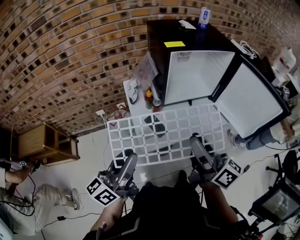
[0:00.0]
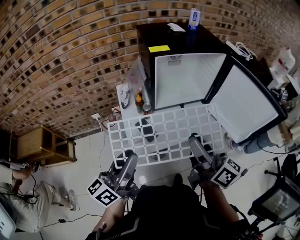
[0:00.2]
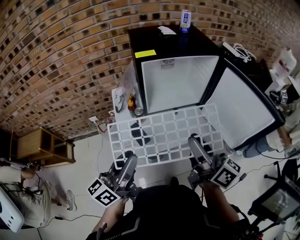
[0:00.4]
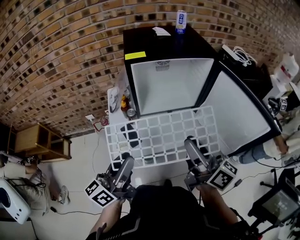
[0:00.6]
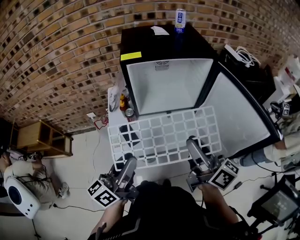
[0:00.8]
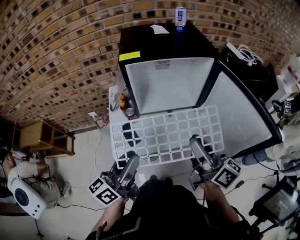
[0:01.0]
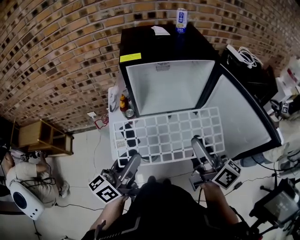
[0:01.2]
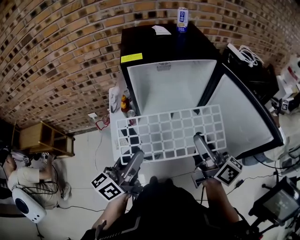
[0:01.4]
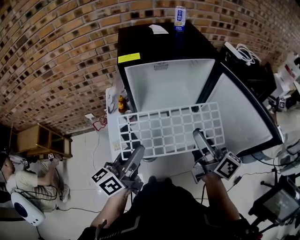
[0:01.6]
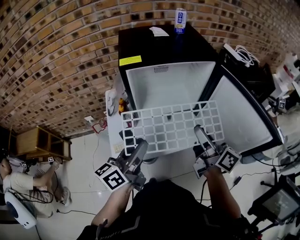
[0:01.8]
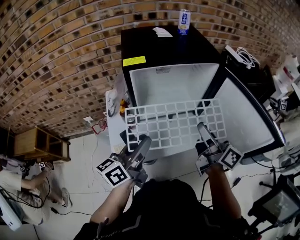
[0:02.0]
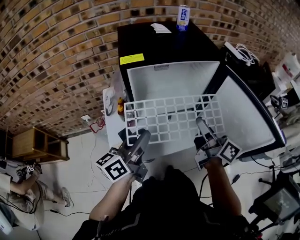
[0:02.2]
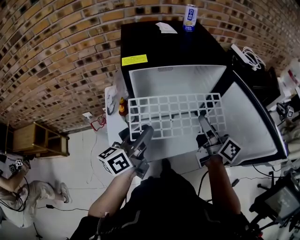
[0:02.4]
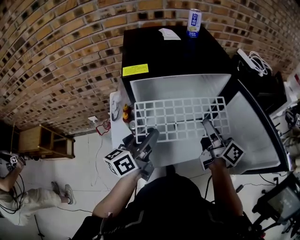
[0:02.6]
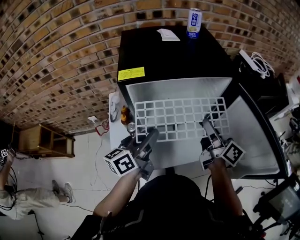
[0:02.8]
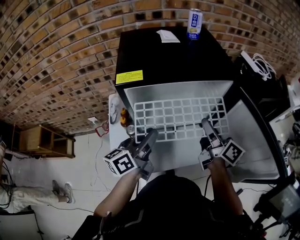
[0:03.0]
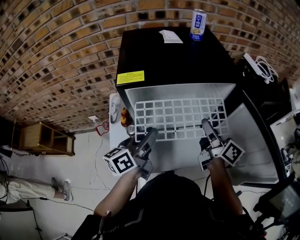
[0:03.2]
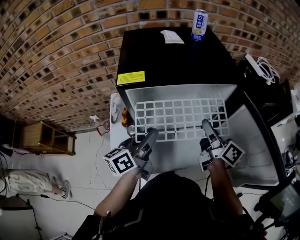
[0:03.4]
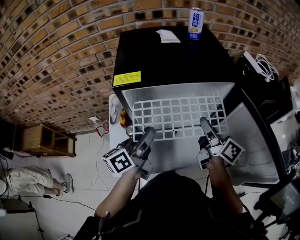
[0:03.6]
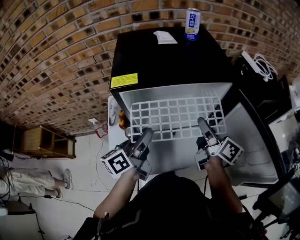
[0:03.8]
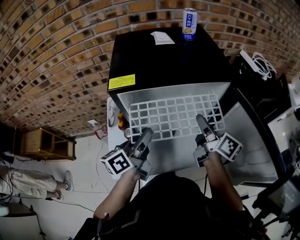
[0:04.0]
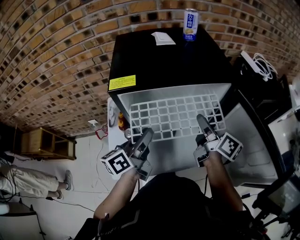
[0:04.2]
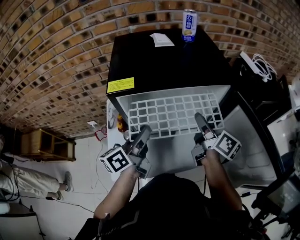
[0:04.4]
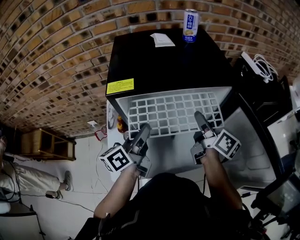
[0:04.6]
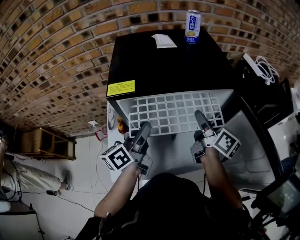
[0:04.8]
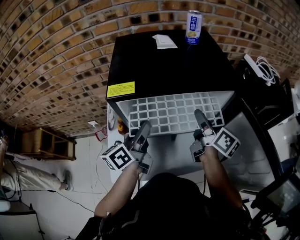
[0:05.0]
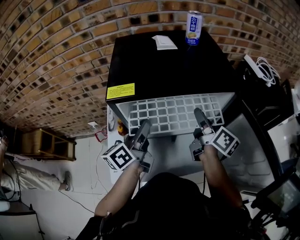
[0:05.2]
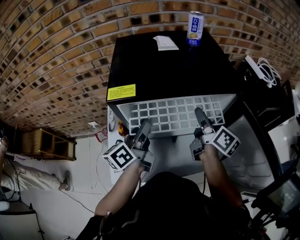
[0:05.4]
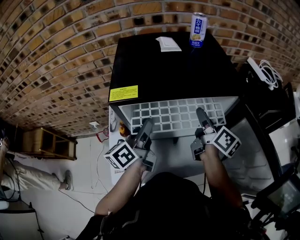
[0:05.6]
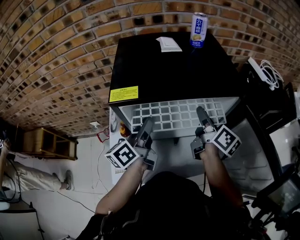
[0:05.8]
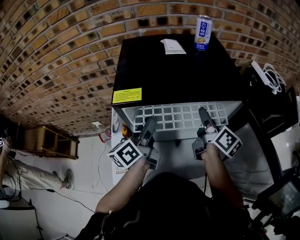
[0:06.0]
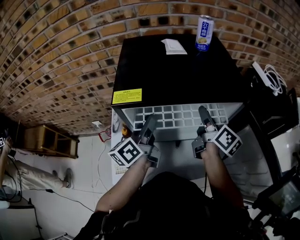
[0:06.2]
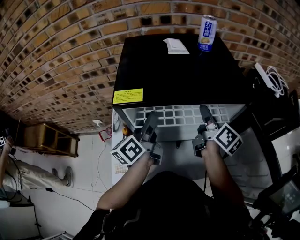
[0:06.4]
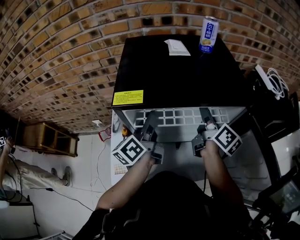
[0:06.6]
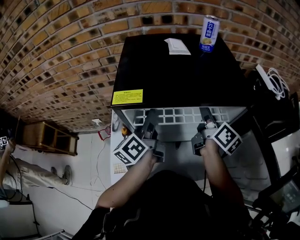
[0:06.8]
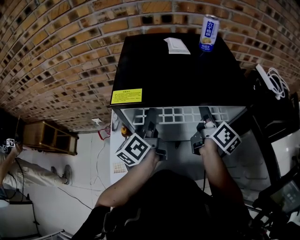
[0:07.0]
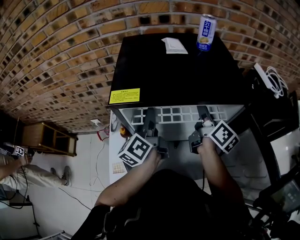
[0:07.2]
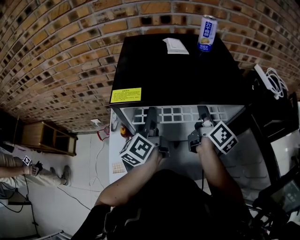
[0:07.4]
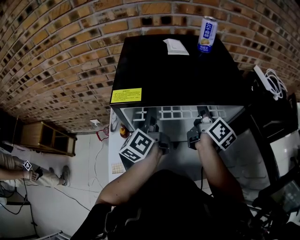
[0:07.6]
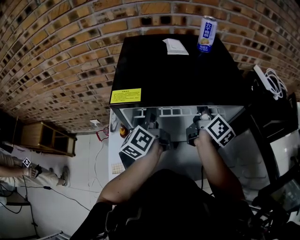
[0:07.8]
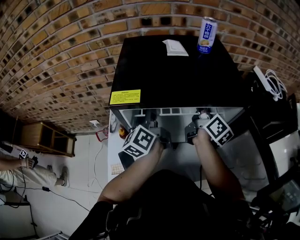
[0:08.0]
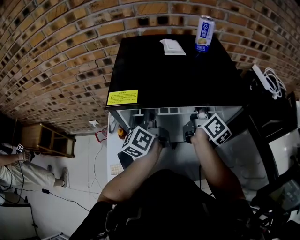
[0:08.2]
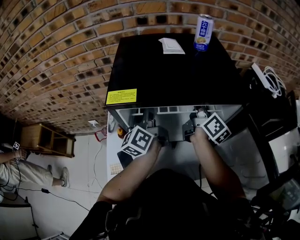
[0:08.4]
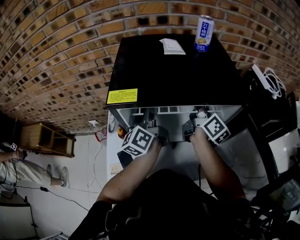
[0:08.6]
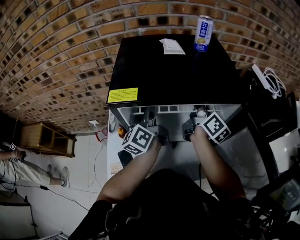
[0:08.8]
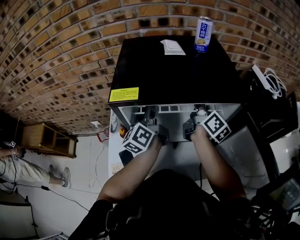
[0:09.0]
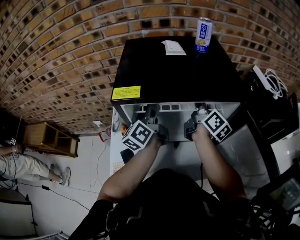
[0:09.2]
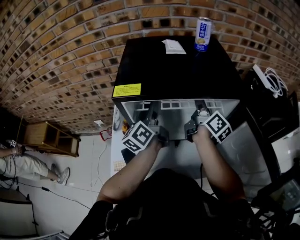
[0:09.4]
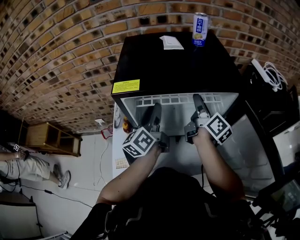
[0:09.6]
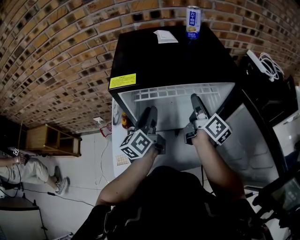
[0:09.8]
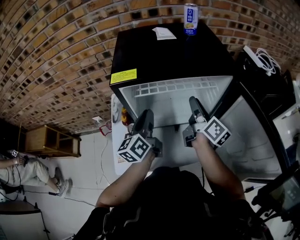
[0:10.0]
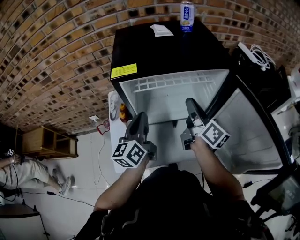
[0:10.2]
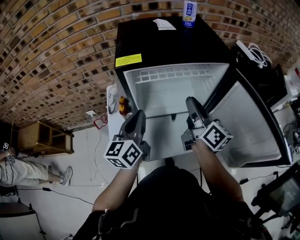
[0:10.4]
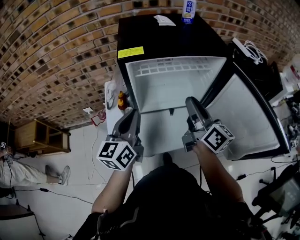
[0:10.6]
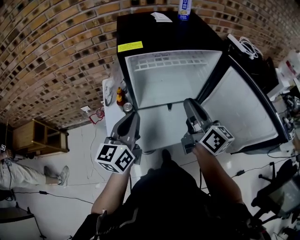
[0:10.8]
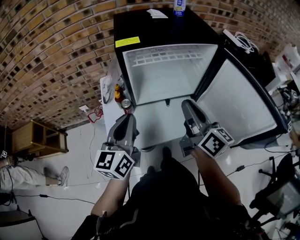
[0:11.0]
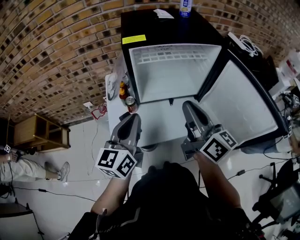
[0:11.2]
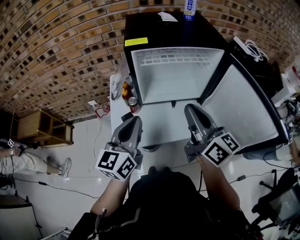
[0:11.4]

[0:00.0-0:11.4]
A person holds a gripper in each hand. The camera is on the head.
0:00.0 to 0:01.4: The right gripper travels to the right and forward by approximately 25 cm, while the left gripper travels to the right by some 20 cm.
0:01.4 to 0:02.8: Both grippers travel together forward, approximately 20 cm.
0:02.8 to 0:04.2: The right gripper travels forward by roughly 5 cm.
0:04.2 to 0:05.6: Both grippers move forward, roughly 5 cm.
0:05.6 to 0:07.2: The left gripper moves approximately 5 cm, and changes its angle by some 20 degrees; the right gripper travels forward by some 5 cm.
0:07.2 to 0:08.6: There are only small adjustments of the grippers.
0:08.6 to 0:10.0: The grippers both shift backward by about 10 cm. The left gripper closes its fingers.
0:10.0 to 0:11.4: The left gripper shifts roughly 20 cm backward, and turns by roughly 20 degrees. Meanwhile the right gripper shifts approximately 25 cm backward and upward, changes its angle by roughly 30 degrees, and closes.

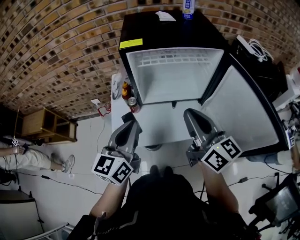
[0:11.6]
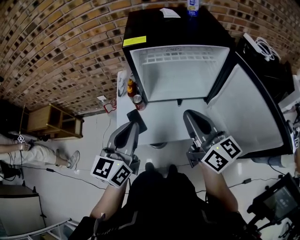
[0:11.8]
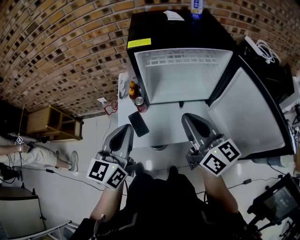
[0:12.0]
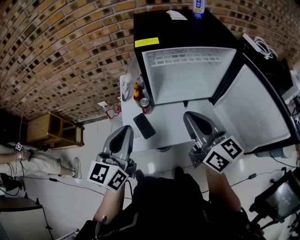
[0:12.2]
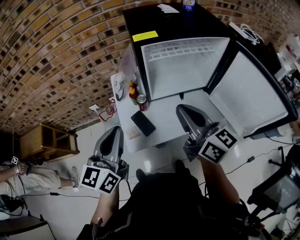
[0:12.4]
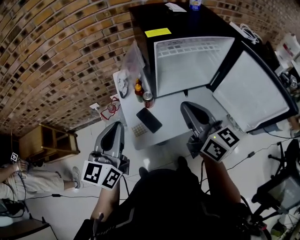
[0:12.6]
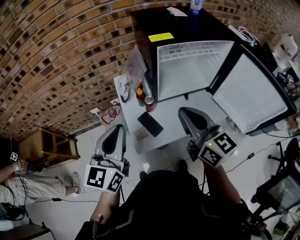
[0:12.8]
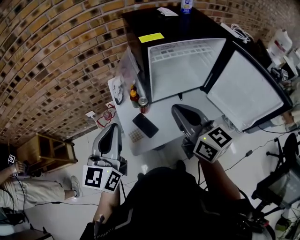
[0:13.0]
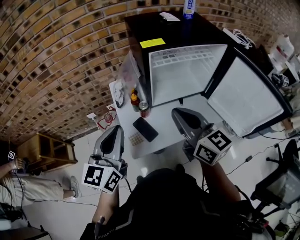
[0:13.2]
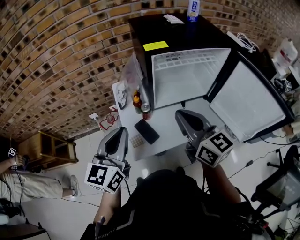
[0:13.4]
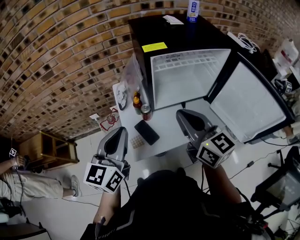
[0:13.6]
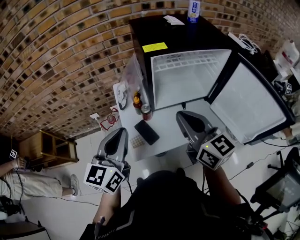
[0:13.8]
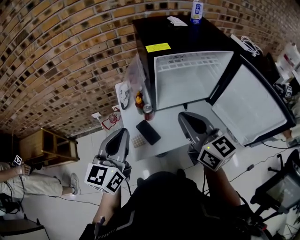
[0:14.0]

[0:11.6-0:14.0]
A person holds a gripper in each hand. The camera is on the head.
0:11.6 to 0:12.8: The grippers both shift to the left by some 20 cm.
0:12.8 to 0:14.0: The grippers stay close to where they were, moving slightly.

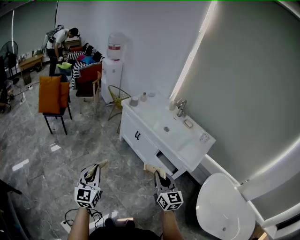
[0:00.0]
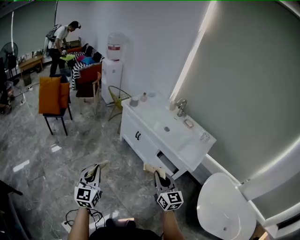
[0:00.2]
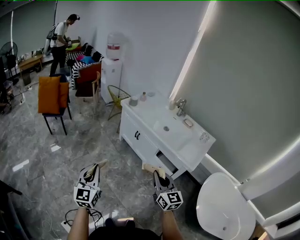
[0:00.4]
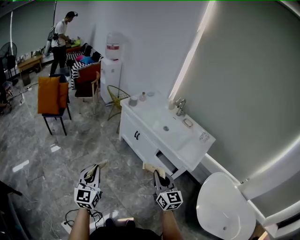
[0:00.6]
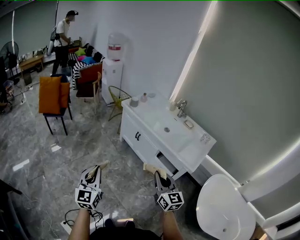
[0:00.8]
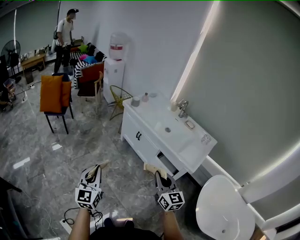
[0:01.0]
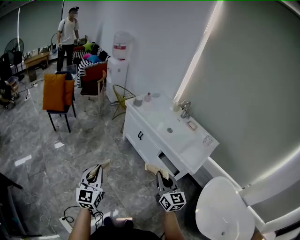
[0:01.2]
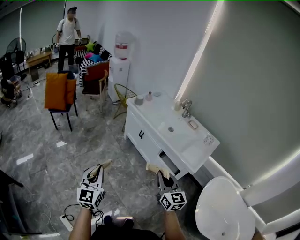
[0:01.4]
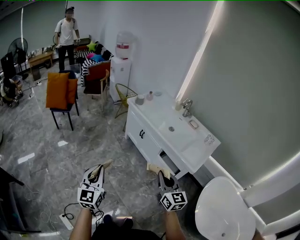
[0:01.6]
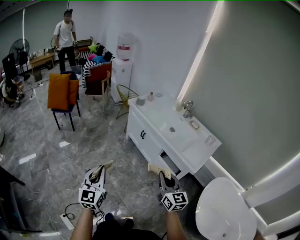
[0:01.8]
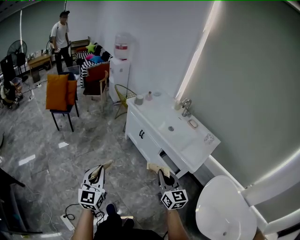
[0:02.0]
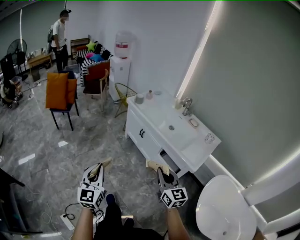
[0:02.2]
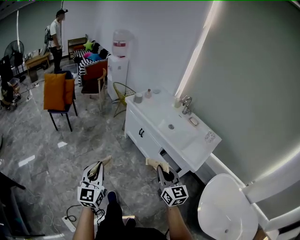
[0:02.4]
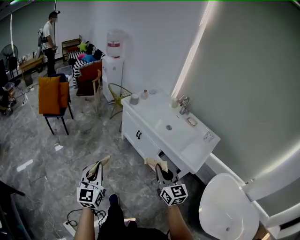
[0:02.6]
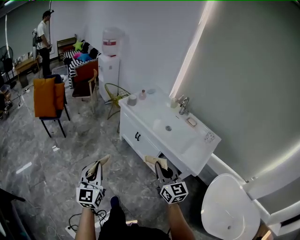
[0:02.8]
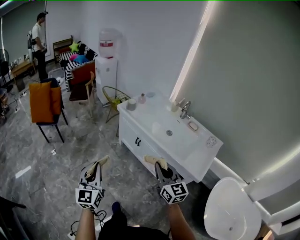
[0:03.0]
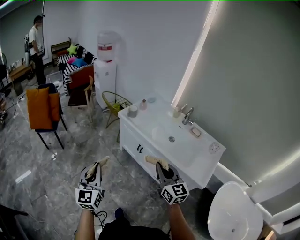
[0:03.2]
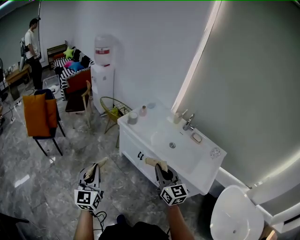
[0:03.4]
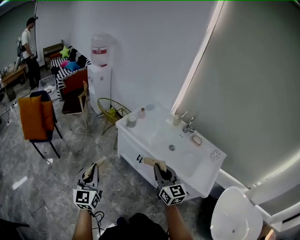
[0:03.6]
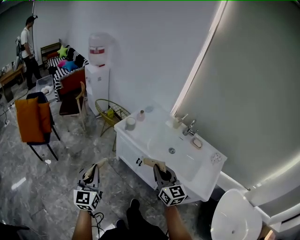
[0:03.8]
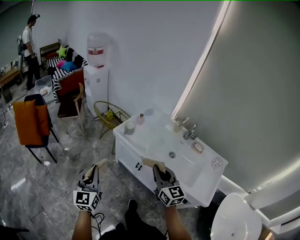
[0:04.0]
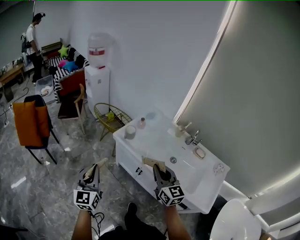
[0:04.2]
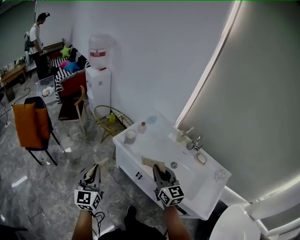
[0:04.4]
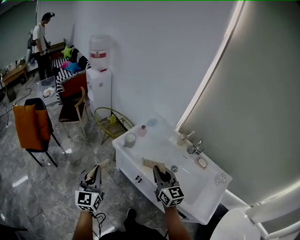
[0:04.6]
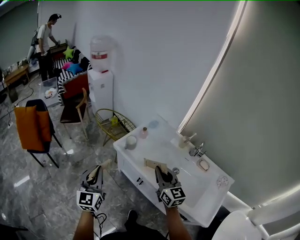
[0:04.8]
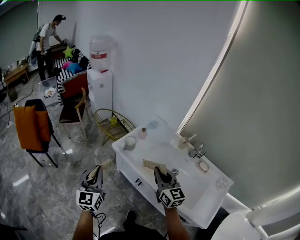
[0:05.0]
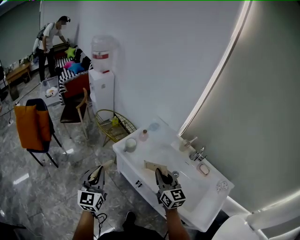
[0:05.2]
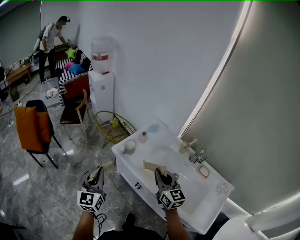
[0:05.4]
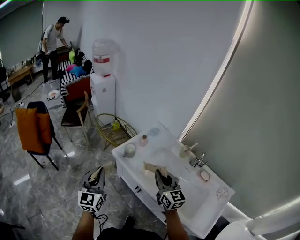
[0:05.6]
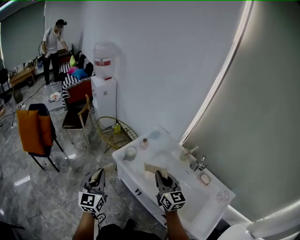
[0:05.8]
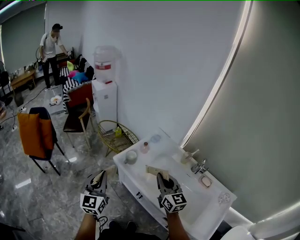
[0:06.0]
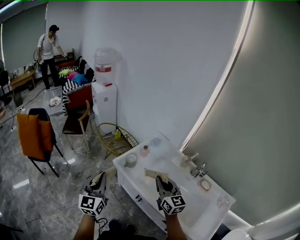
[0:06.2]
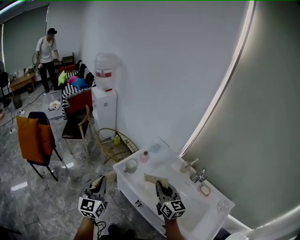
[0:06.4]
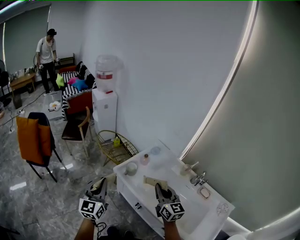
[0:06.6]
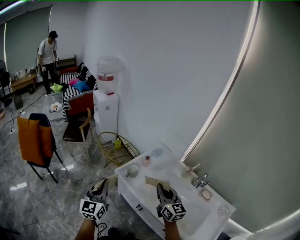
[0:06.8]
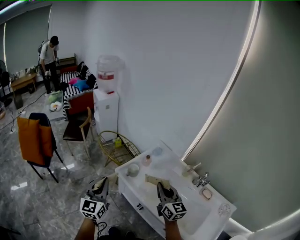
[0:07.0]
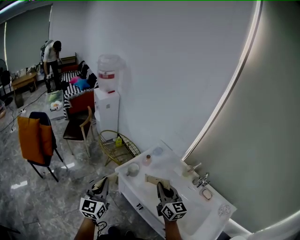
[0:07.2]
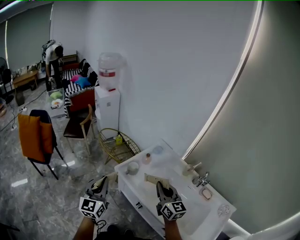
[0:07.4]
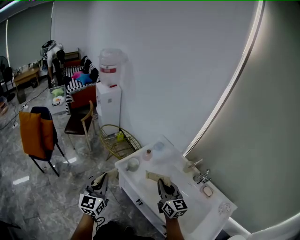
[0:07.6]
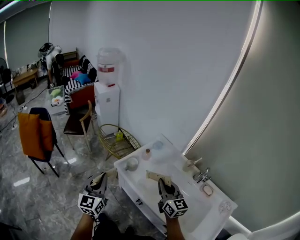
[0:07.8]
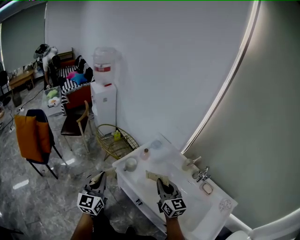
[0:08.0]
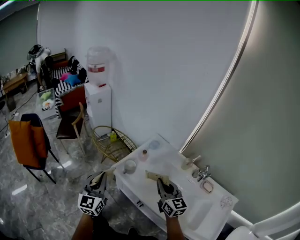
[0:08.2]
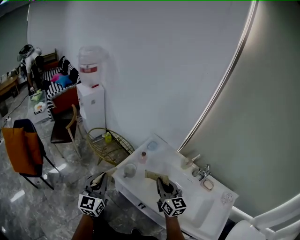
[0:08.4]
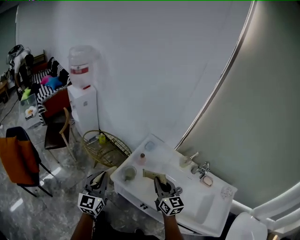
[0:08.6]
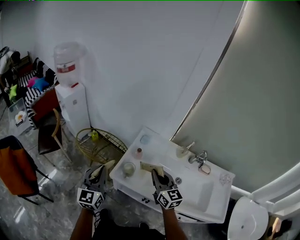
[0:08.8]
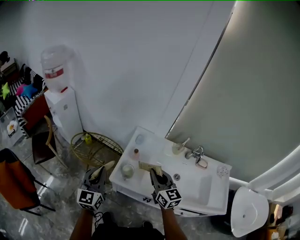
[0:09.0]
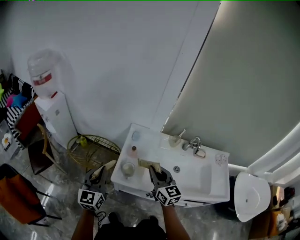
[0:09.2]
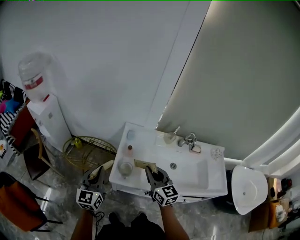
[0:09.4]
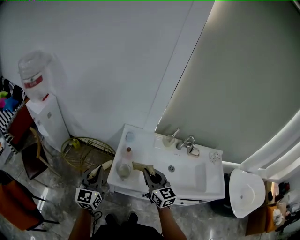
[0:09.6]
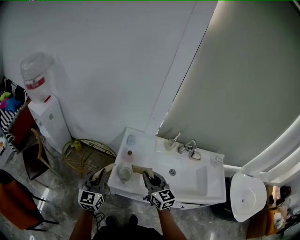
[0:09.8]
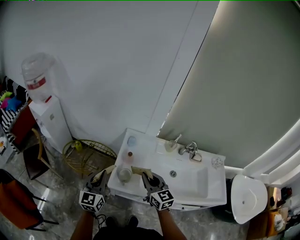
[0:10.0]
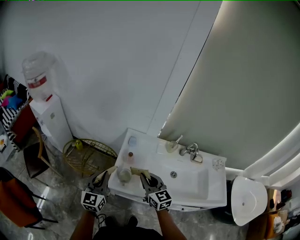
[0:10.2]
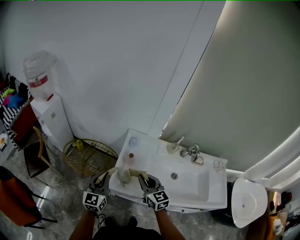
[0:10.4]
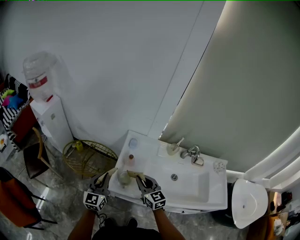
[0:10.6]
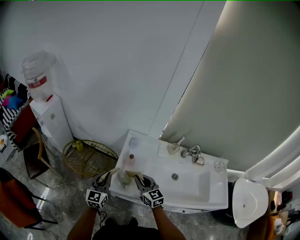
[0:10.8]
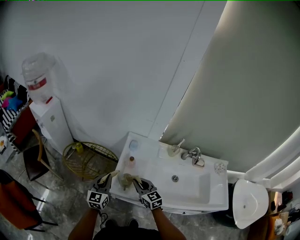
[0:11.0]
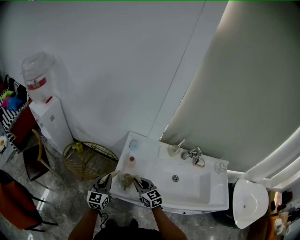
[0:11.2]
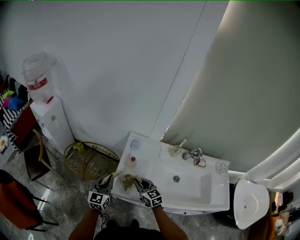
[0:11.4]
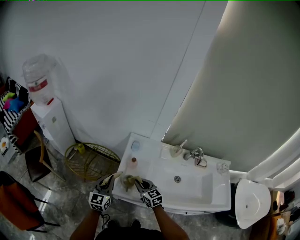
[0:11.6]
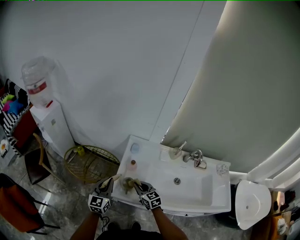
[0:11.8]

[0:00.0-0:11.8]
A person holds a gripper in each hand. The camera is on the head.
0:00.0 to 0:01.4: The grippers make only small movements.
0:01.4 to 0:03.0: Both grippers move forward, approximately 20 cm.
0:03.0 to 0:04.4: The two grippers go some 40 cm forward.
0:04.4 to 0:06.0: The grippers both shift forward and to the right by roughly 15 cm.
0:06.0 to 0:07.4: There are only small adjustments of the grippers.
0:07.4 to 0:08.8: The right gripper heads forward and to the left, covering approximately 15 cm, while the left gripper is displaced forward by approximately 20 cm, and swivels approximately 20 degrees.
0:08.8 to 0:10.4: The right gripper goes about 10 cm to the left and downward. The left gripper heads forward and downward, covering roughly 10 cm.
0:10.4 to 0:11.8: The right gripper travels downward by about 15 cm. Meanwhile the left gripper goes approximately 5 cm downward.
